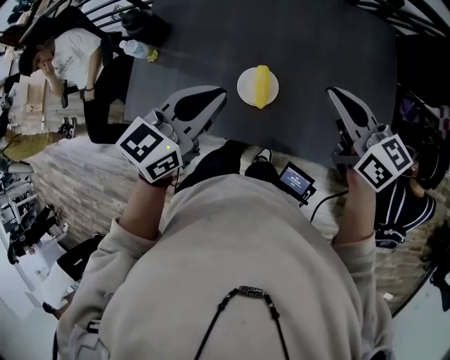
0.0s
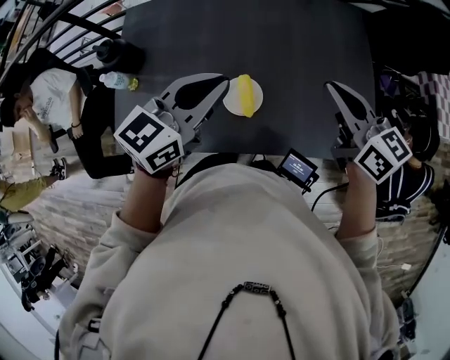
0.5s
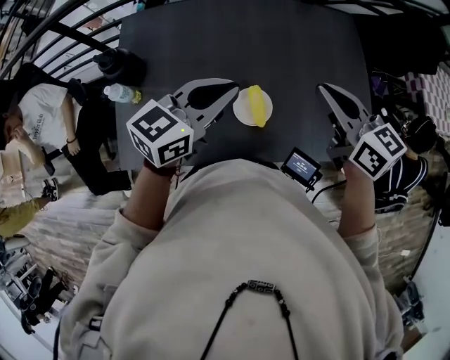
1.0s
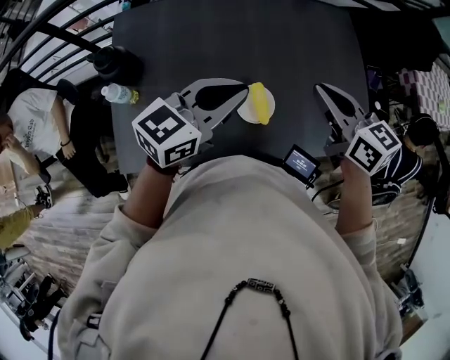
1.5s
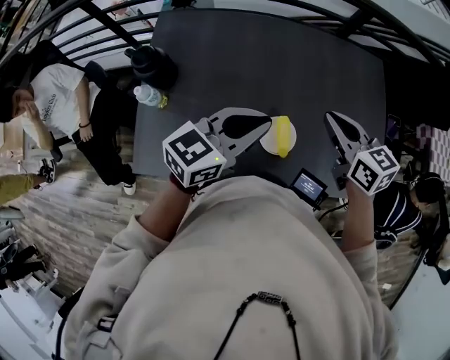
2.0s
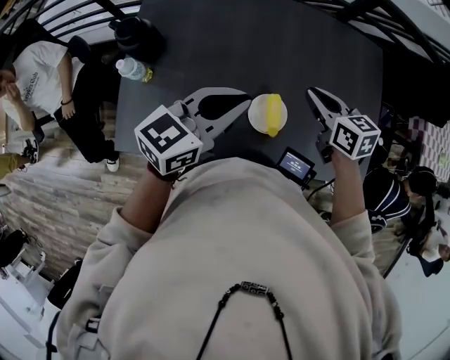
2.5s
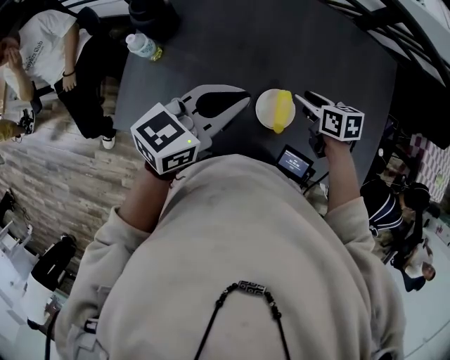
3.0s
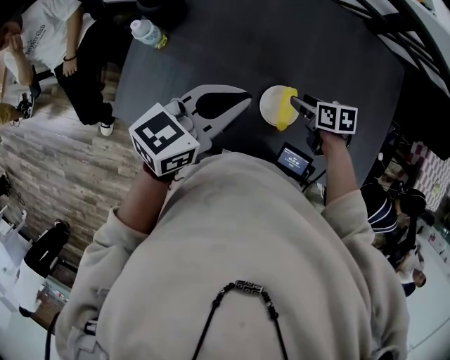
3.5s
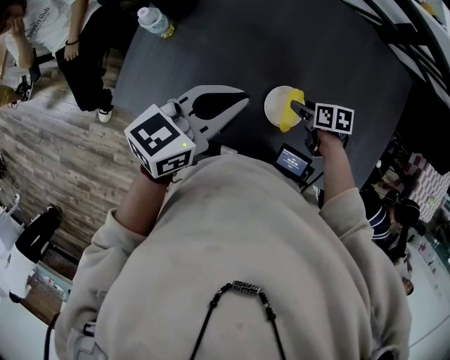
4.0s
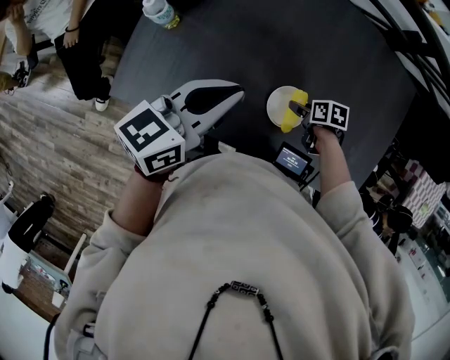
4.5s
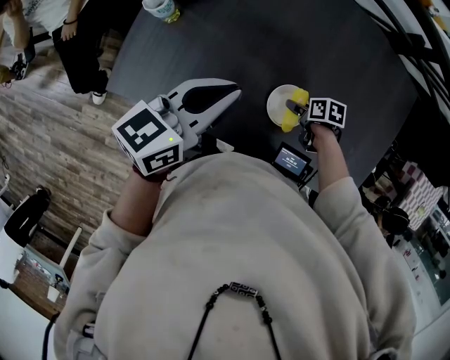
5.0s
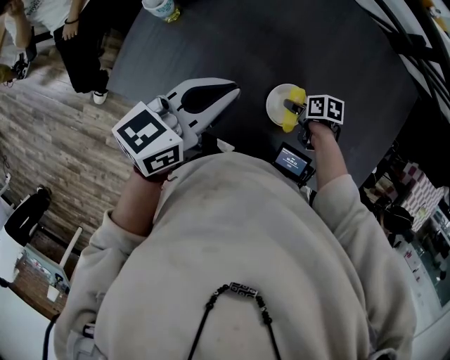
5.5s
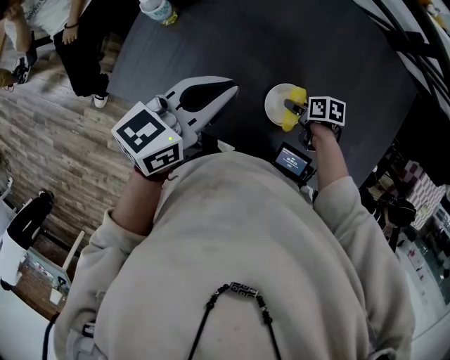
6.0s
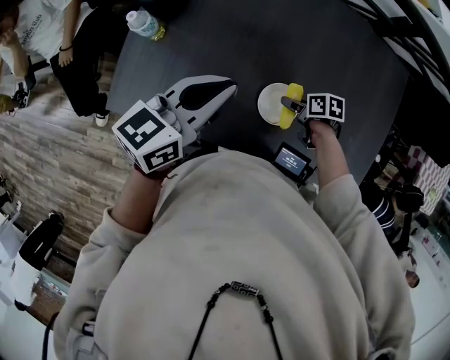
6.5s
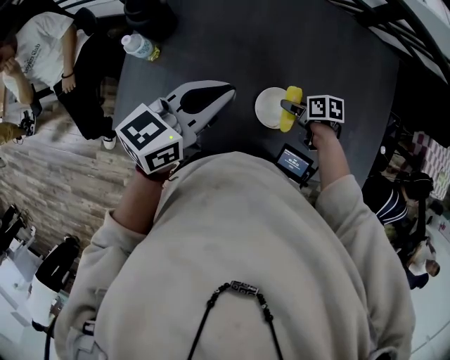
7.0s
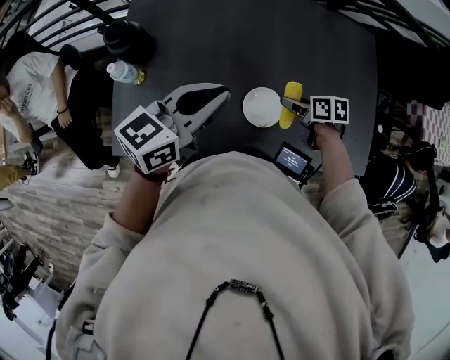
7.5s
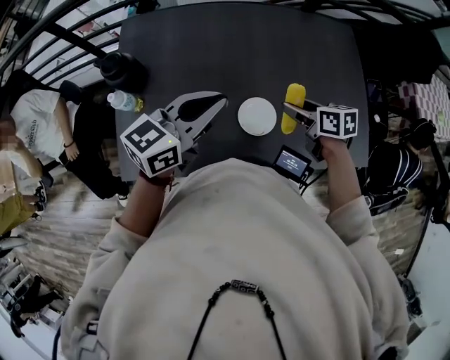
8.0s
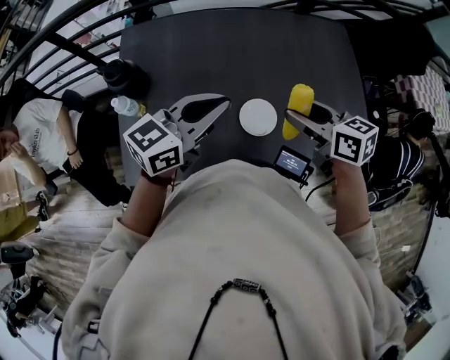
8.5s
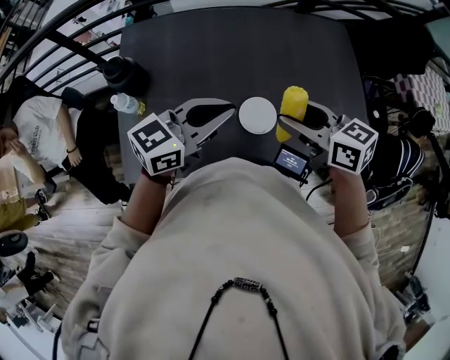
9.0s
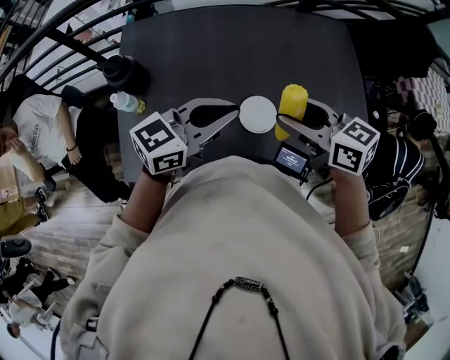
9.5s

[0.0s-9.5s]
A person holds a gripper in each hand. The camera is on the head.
0.0s to 2.0s: The right gripper changes place by roughly 5 cm, and swivels roughly 20 degrees. Meanwhile the left gripper heads upward, covering approximately 5 cm, and rotates roughly 20 degrees.
2.0s to 4.0s: The right gripper is displaced downward by some 25 cm, tips its fingers downward by some 30 degrees, and opens its fingers. The left gripper moves some 10 cm, and rotates some 20 degrees.
4.0s to 5.5s: The right gripper goes roughly 5 cm downward.
5.5s to 7.5s: The left gripper moves about 10 cm, and turns by some 20 degrees. Meanwhile the right gripper travels upward by some 10 cm, and changes its angle by roughly 30 degrees.
7.5s to 9.5s: The right gripper goes roughly 25 cm upward, and changes its angle by approximately 40 degrees; the left gripper is displaced to the right by approximately 5 cm.

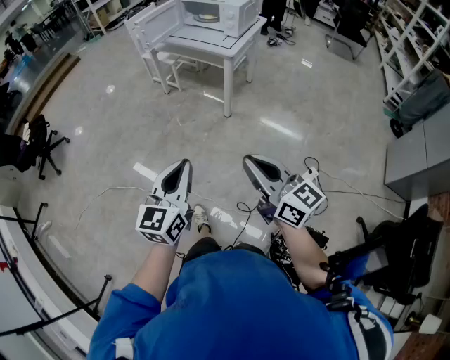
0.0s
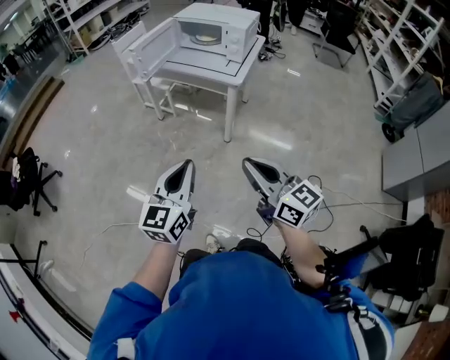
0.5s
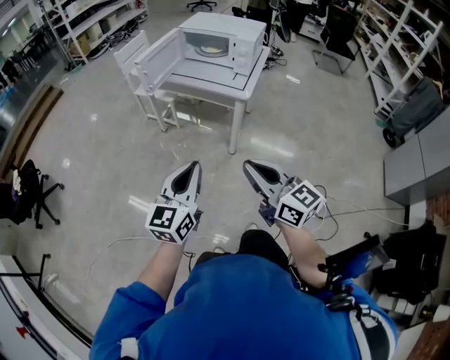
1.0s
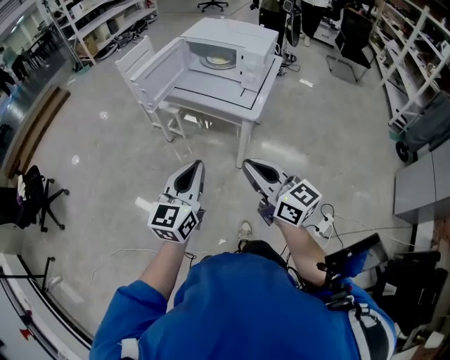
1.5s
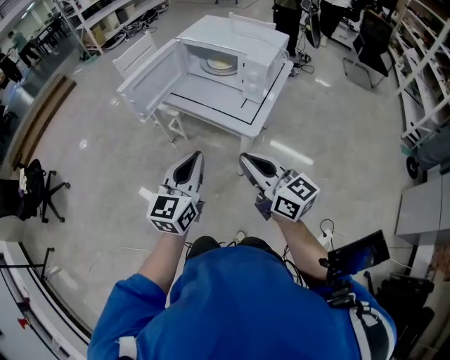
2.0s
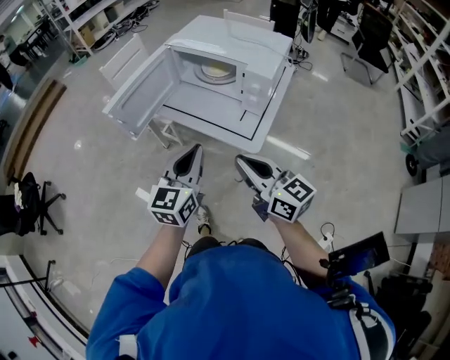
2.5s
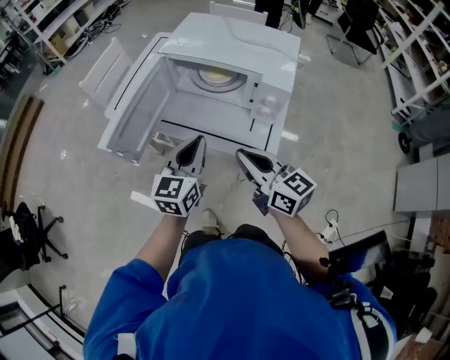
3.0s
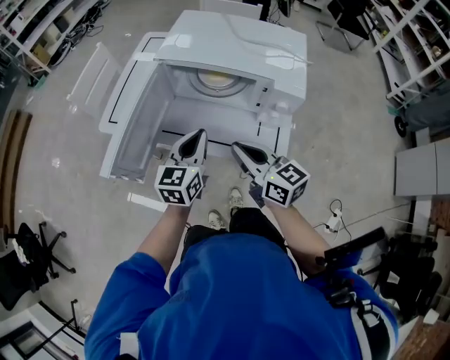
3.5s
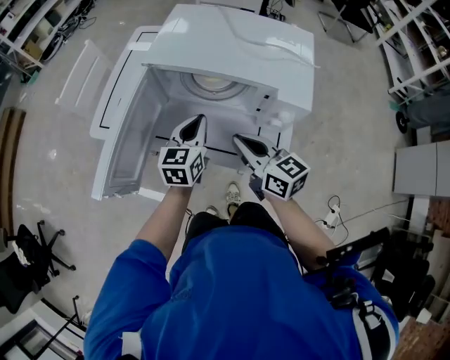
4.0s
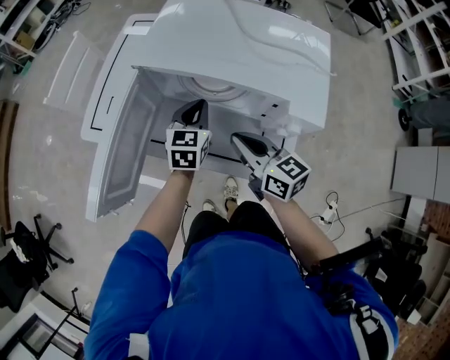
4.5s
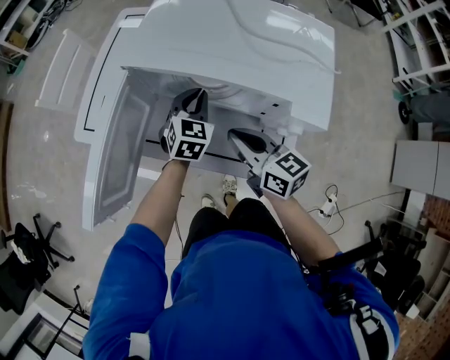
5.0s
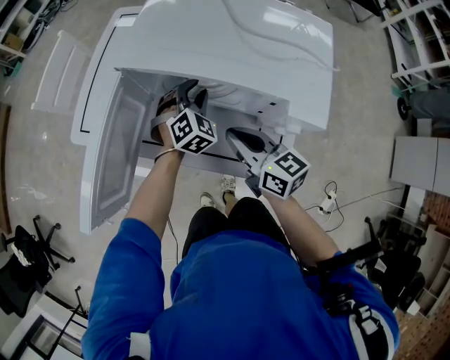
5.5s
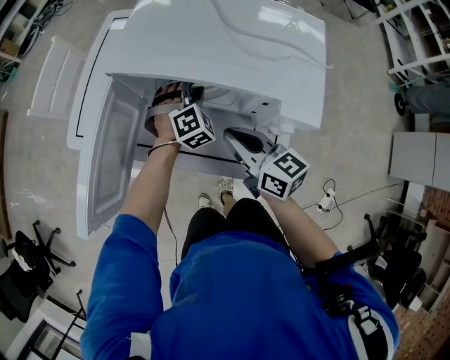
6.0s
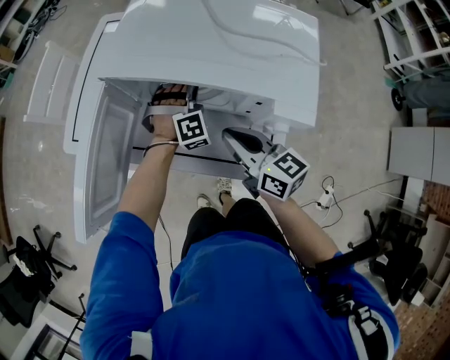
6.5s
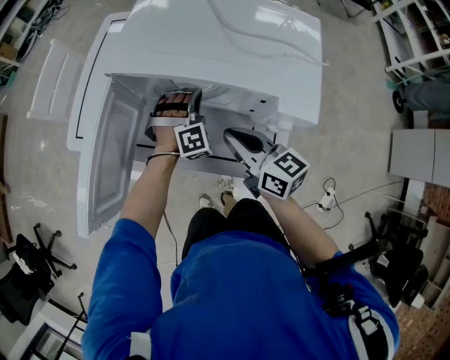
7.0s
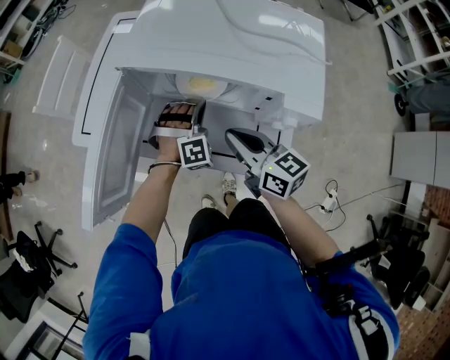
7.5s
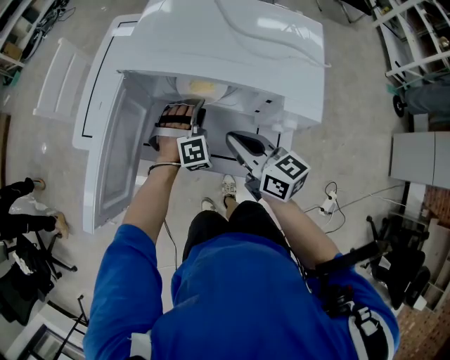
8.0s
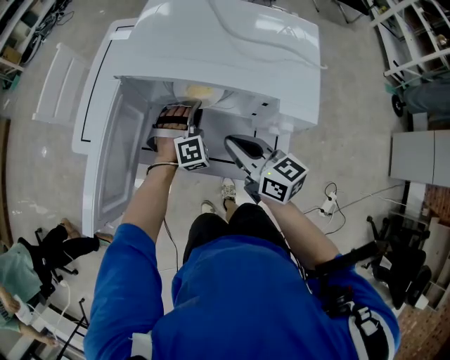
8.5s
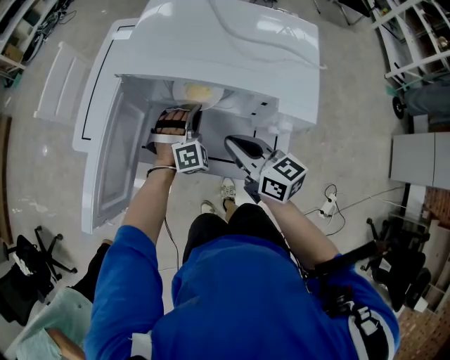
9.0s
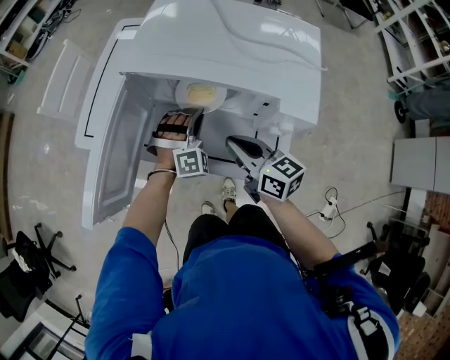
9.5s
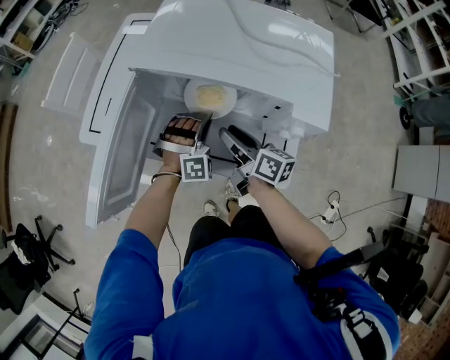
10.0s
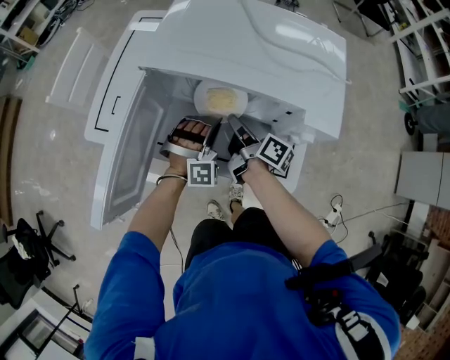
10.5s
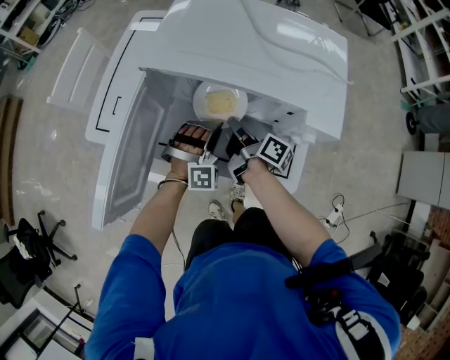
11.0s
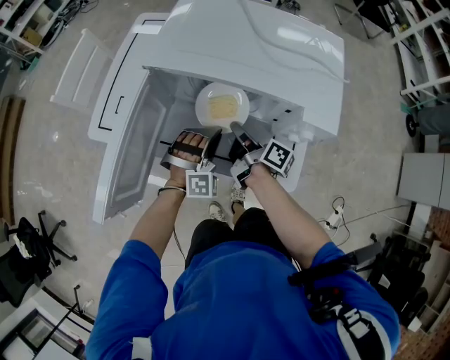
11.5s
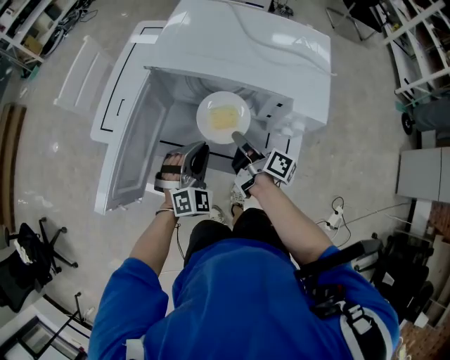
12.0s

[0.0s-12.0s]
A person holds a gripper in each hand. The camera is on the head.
0.0s to 2.0s: Both grippers are carried forward, roughly 50 cm.
2.0s to 4.0s: The two grippers go about 40 cm forward. The right gripper turns by approximately 20 degrees.
4.0s to 6.0s: The left gripper shifts roughly 15 cm forward, downward and to the right, rotates around the line of its fingers by roughly 70 degrees, clockwise from behind, and opens its fingers; the right gripper ends up some 5 cm from where it was.
6.0s to 8.0s: The left gripper goes about 5 cm backward, and closes, then opens again.
8.0s to 10.0s: The left gripper closes up. The right gripper is displaced downward by roughly 5 cm, changes its angle by about 30 degrees, and opens.
10.0s to 12.0s: The left gripper goes roughly 10 cm backward and to the left, and swivels roughly 30 degrees. The right gripper rotates approximately 20 degrees, and closes.

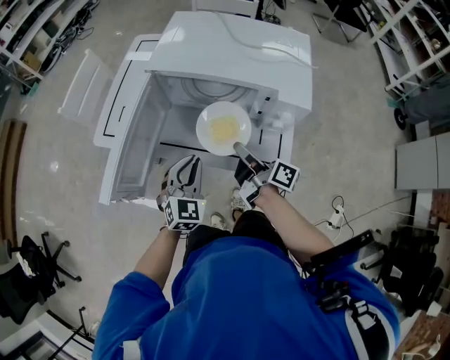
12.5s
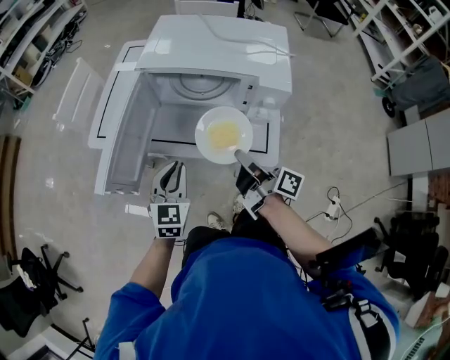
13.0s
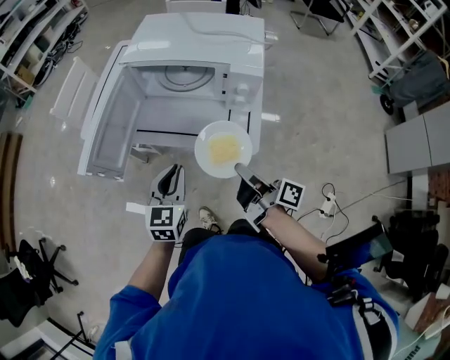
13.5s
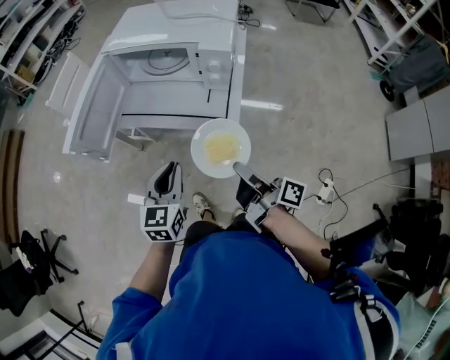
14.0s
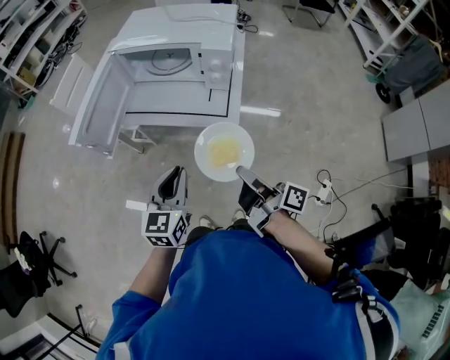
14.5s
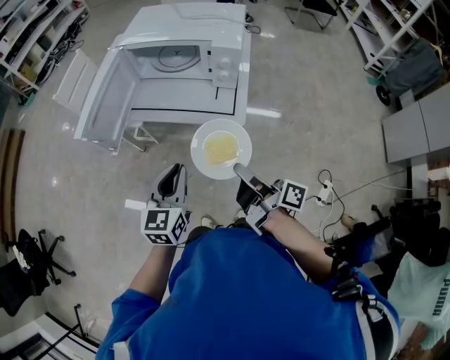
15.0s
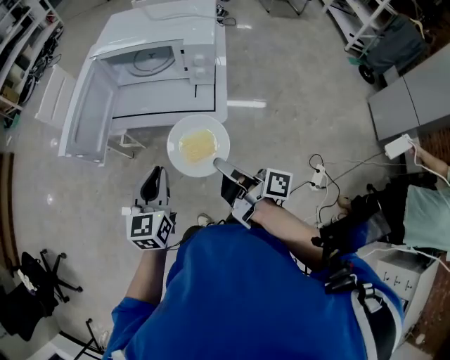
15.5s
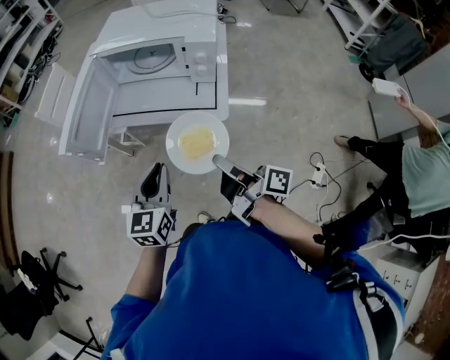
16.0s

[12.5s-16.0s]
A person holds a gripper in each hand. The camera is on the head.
12.5s to 14.5s: The grippers both shift backward by some 25 cm. The left gripper rotates some 30 degrees.
14.5s to 16.0s: The right gripper heads to the left, covering some 5 cm.

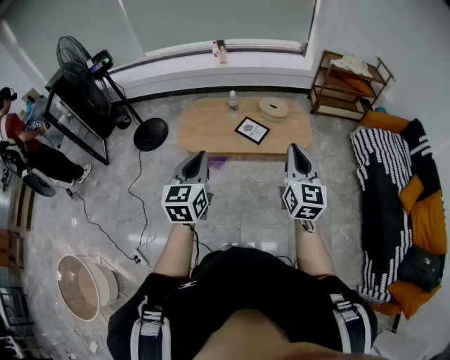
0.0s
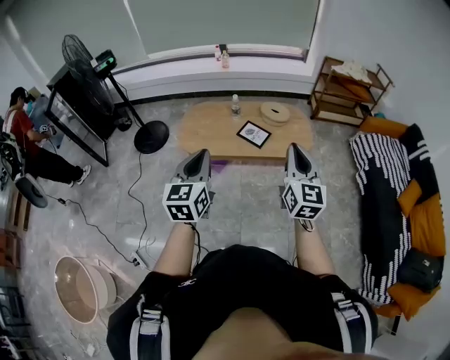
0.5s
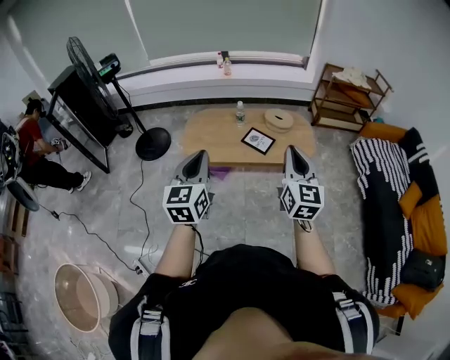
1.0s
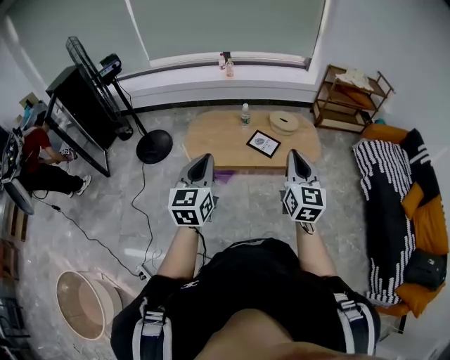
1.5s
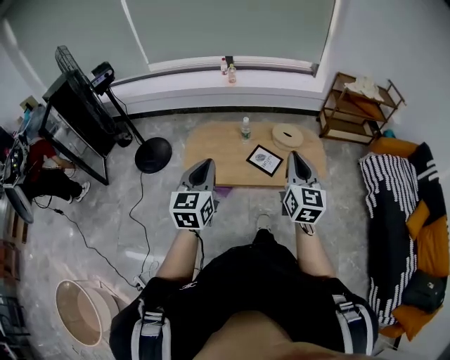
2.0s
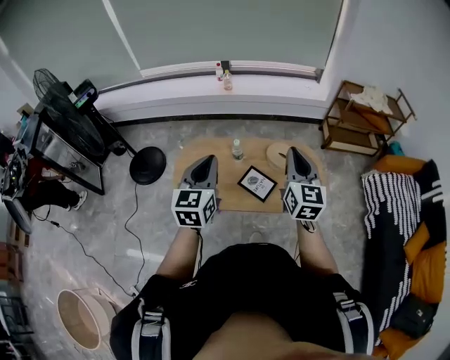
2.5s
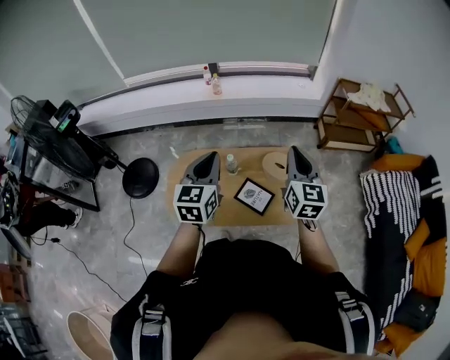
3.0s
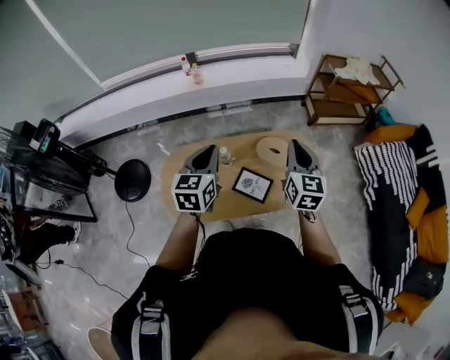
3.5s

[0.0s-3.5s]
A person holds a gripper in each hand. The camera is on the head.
0.0s to 2.0s: The two grippers go approximately 20 cm forward and to the left.
2.0s to 3.5s: The two grippers travel together, forward, about 40 cm.
